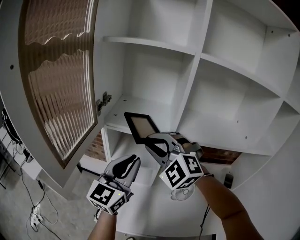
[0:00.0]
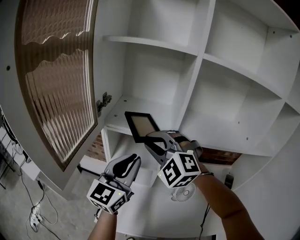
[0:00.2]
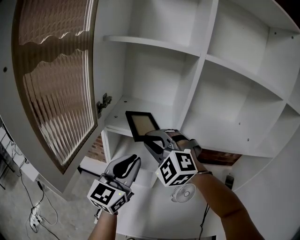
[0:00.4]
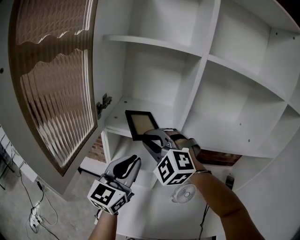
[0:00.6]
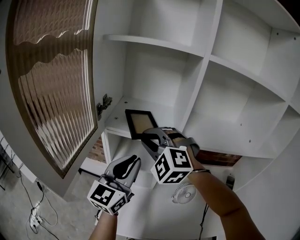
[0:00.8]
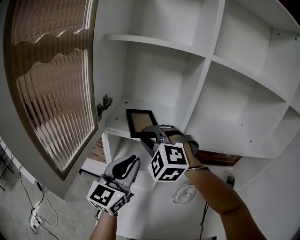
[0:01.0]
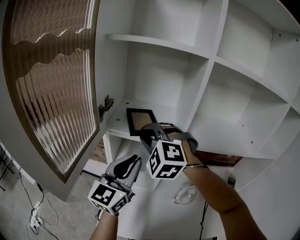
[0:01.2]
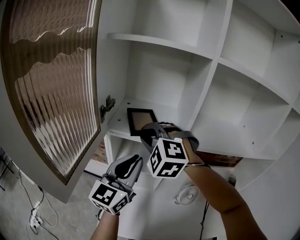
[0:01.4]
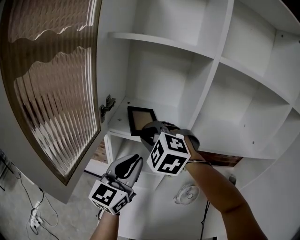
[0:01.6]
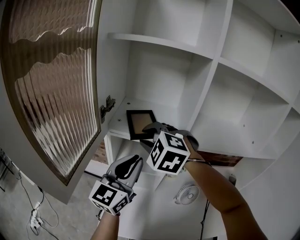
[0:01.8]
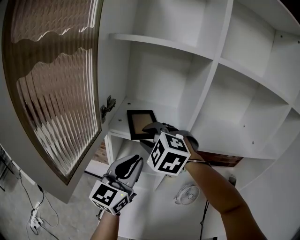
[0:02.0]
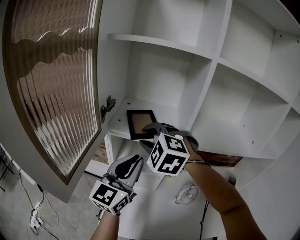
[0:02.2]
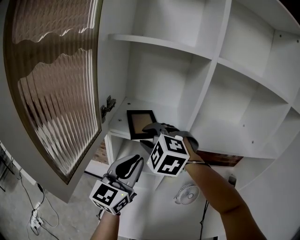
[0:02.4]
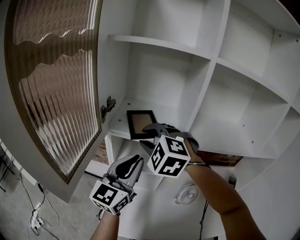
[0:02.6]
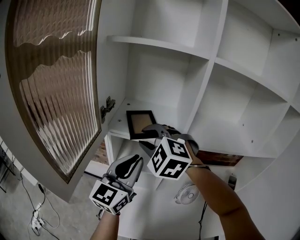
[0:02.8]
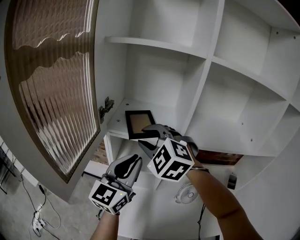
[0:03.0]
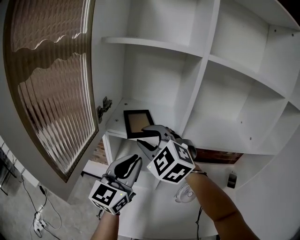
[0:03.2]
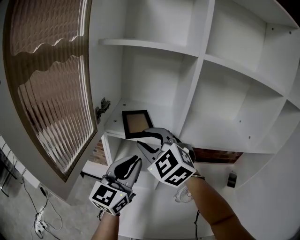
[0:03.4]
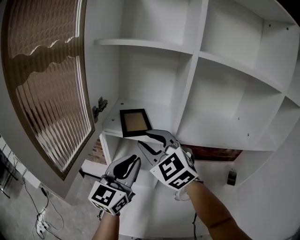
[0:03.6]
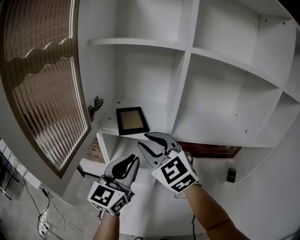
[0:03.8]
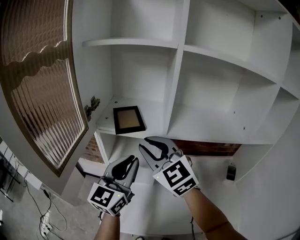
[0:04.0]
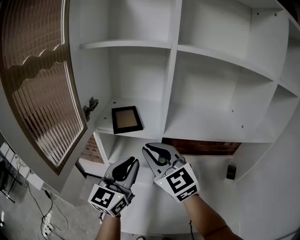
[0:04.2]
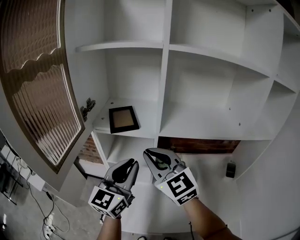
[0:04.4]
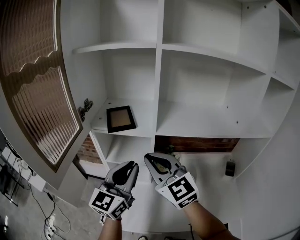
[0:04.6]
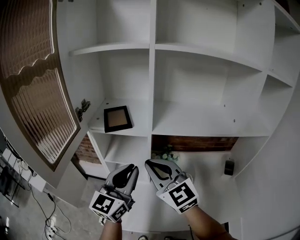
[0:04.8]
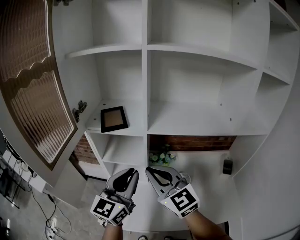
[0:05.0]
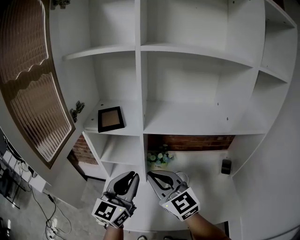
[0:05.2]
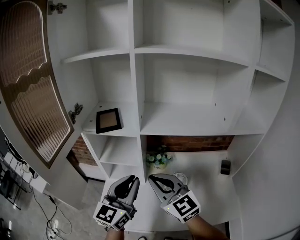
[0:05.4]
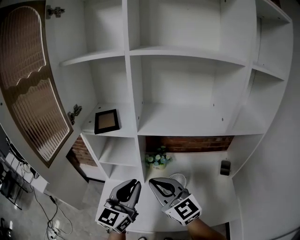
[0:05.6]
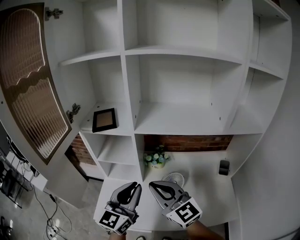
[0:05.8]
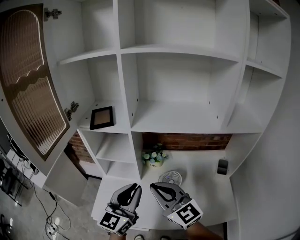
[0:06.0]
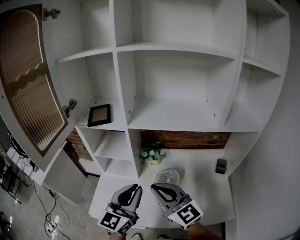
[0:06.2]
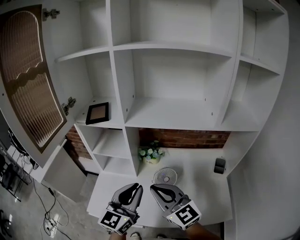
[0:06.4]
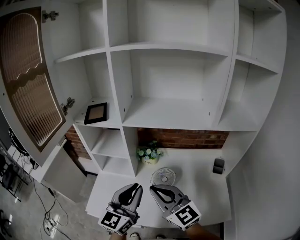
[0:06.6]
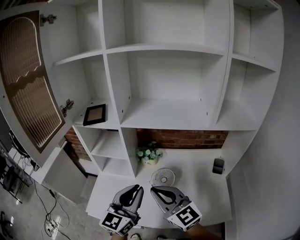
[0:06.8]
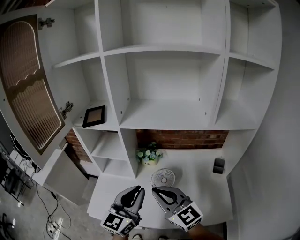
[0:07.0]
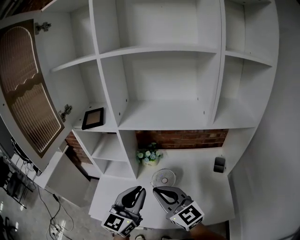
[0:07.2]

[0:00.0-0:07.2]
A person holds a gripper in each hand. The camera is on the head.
0:00.0 to 0:01.4: The right gripper heads forward, covering approximately 10 cm.
0:01.4 to 0:02.8: There are only small adjustments of the grippers.
0:02.8 to 0:04.4: The left gripper shifts some 5 cm to the right; the right gripper heads backward and to the right, covering some 15 cm, swivels approximately 50 degrees, and closes up.
0:04.4 to 0:05.8: The grippers both shift backward, to the right and downward by roughly 15 cm.
0:05.8 to 0:07.2: The grippers both shift to the right by about 10 cm.

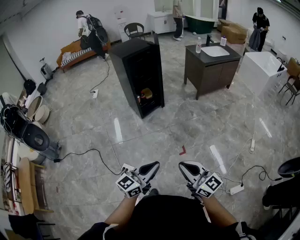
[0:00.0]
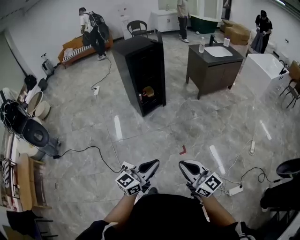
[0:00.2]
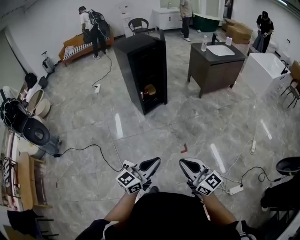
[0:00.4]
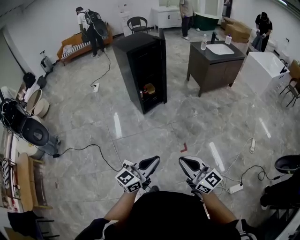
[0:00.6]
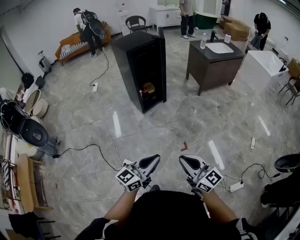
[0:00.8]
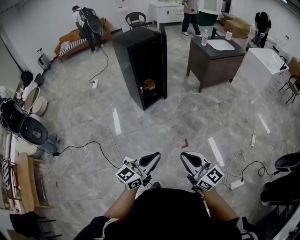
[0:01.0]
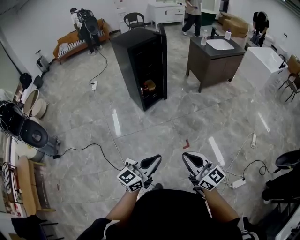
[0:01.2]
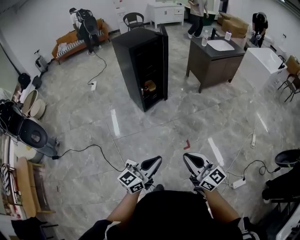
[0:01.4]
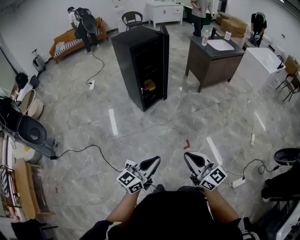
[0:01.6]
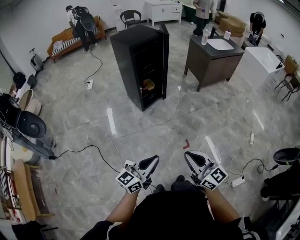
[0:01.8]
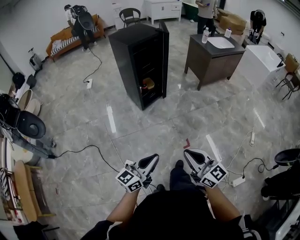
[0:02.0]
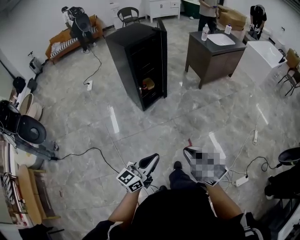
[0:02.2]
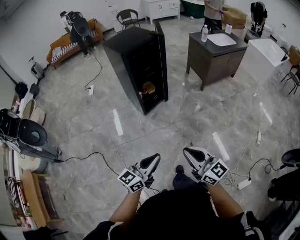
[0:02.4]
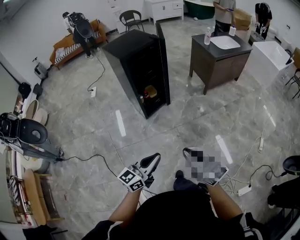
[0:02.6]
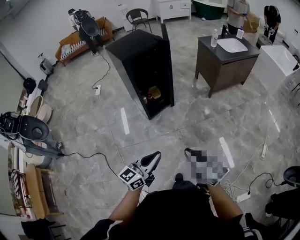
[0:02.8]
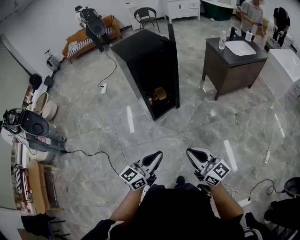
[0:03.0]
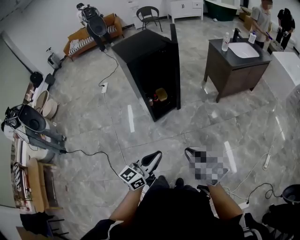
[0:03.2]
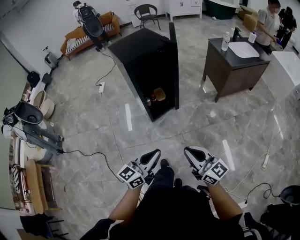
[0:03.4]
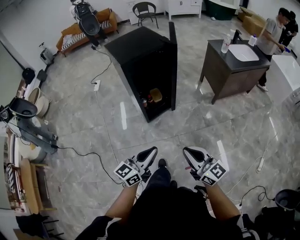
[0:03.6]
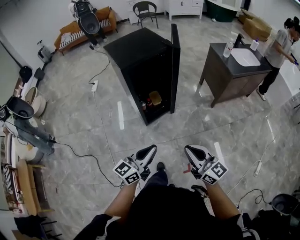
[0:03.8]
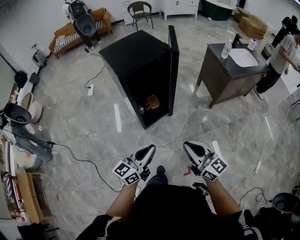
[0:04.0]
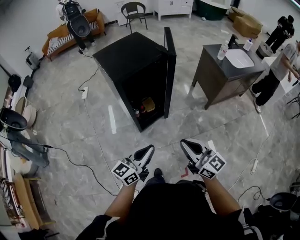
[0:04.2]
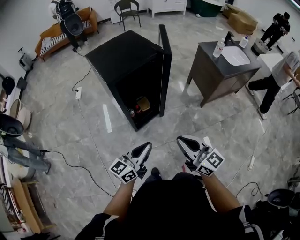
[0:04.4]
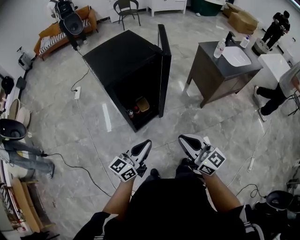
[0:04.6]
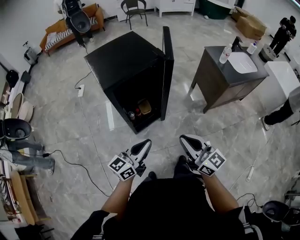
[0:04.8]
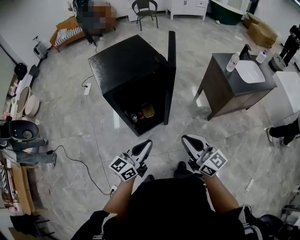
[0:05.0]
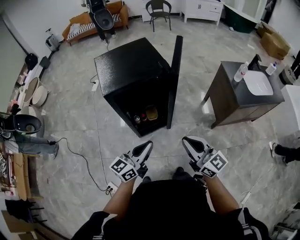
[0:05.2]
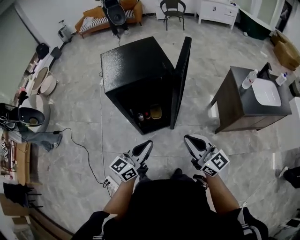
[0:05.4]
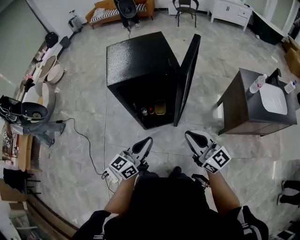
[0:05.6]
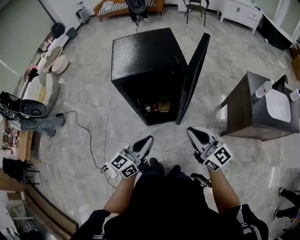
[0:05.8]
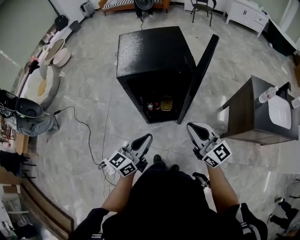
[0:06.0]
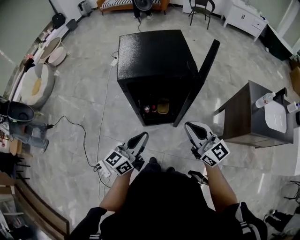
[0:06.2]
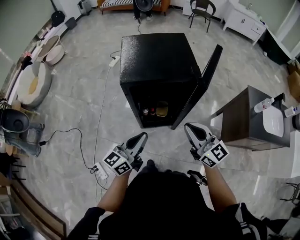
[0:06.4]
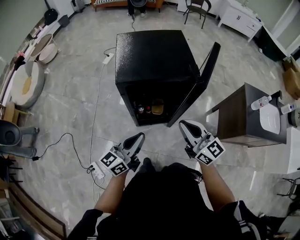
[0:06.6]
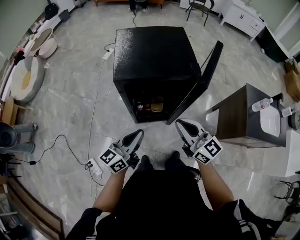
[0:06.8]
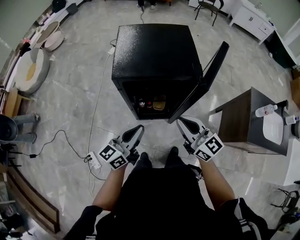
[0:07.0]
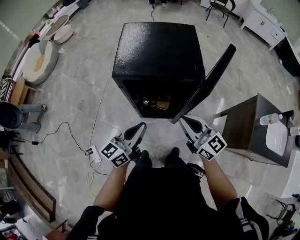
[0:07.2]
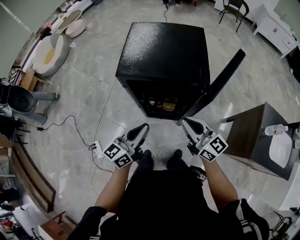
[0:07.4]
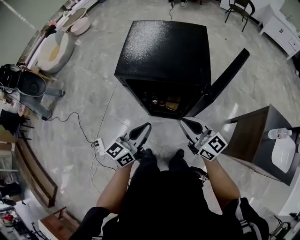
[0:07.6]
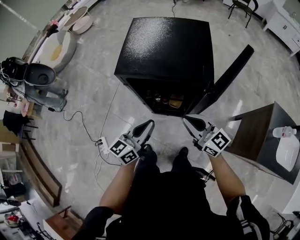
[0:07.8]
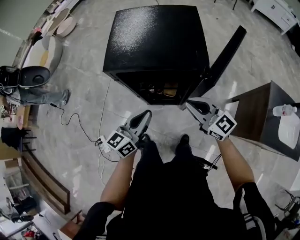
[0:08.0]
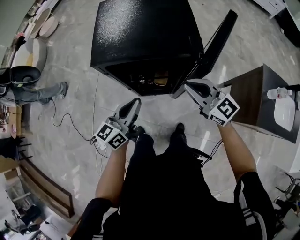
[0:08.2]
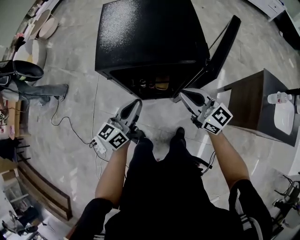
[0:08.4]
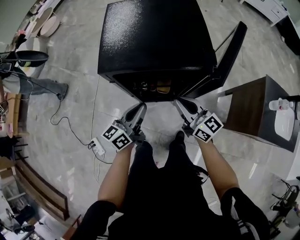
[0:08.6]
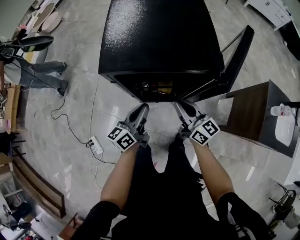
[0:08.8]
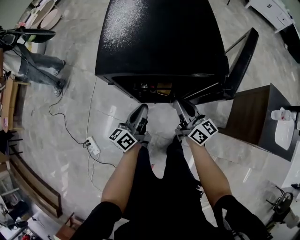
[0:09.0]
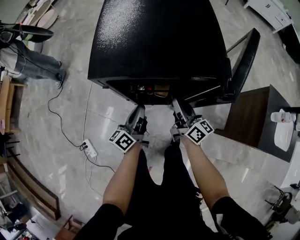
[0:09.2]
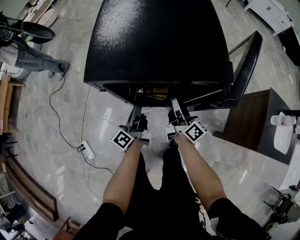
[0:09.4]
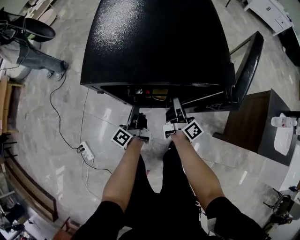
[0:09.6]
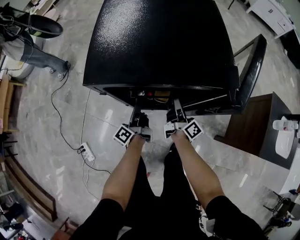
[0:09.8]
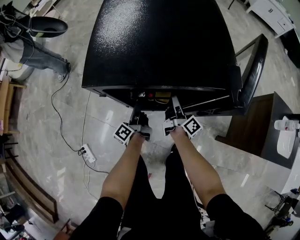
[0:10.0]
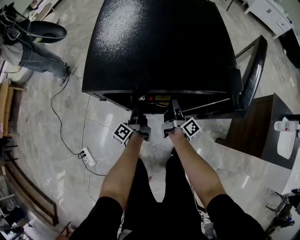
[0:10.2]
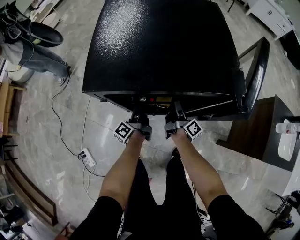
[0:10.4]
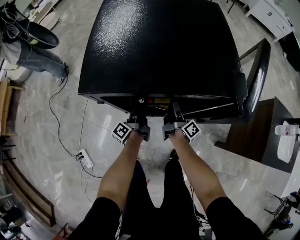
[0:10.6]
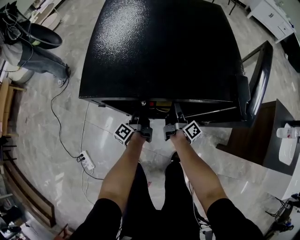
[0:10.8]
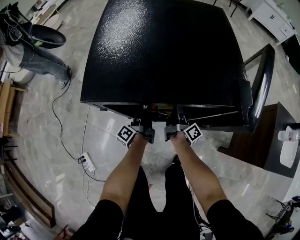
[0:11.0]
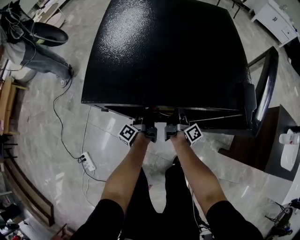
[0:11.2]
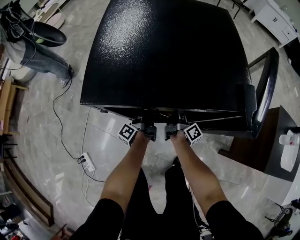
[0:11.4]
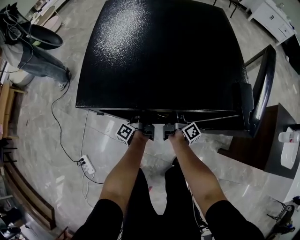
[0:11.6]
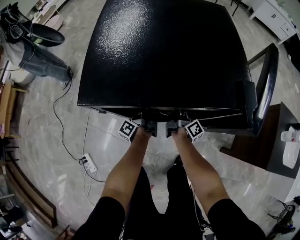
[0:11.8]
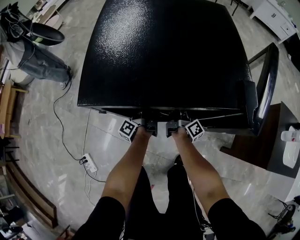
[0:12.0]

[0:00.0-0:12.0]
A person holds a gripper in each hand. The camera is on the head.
0:00.0 to 0:01.6: Both grippers move to the left and forward, approximately 15 cm.
0:01.6 to 0:03.0: The two grippers go approximately 25 cm forward.
0:03.0 to 0:04.4: The two grippers go about 30 cm forward.
0:04.4 to 0:06.0: The left gripper moves some 15 cm, and changes its angle by some 30 degrees; the right gripper changes place by approximately 25 cm, and changes its angle by approximately 30 degrees.
0:06.0 to 0:07.6: The right gripper shifts about 15 cm forward and downward, and changes its angle by some 20 degrees. The left gripper shifts about 10 cm forward.
0:07.6 to 0:09.0: Both grippers travel together downward and forward, about 15 cm. The right gripper rotates about 30 degrees, while the left gripper turns by roughly 30 degrees.
0:09.0 to 0:10.4: The two grippers go about 20 cm downward and forward. The right gripper twists some 50 degrees clockwise, seen from behind, and opens. Meanwhile the left gripper changes its angle by approximately 40 degrees, and opens its fingers.
0:10.4 to 0:12.0: The right gripper moves about 5 cm. Meanwhile the left gripper shifts about 5 cm forward.

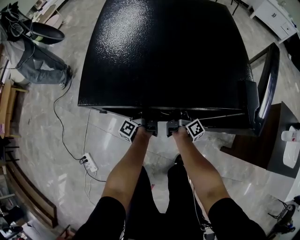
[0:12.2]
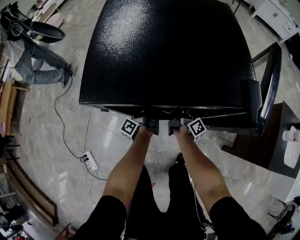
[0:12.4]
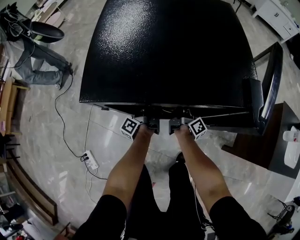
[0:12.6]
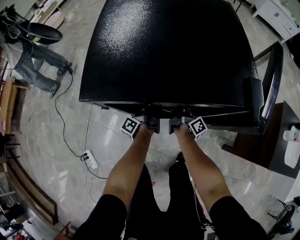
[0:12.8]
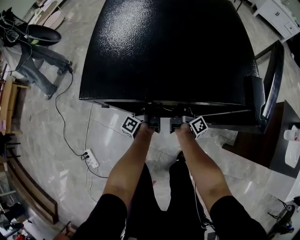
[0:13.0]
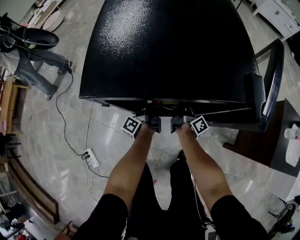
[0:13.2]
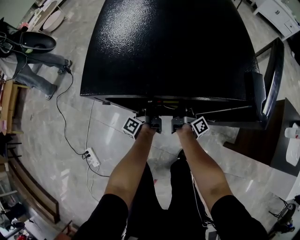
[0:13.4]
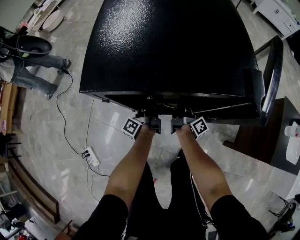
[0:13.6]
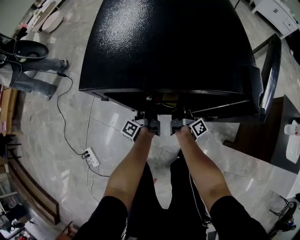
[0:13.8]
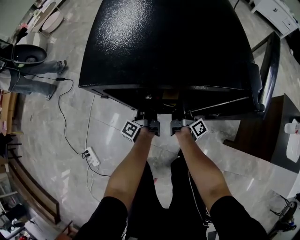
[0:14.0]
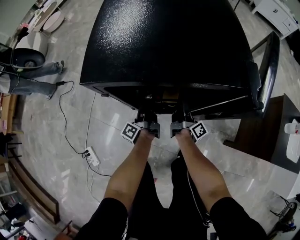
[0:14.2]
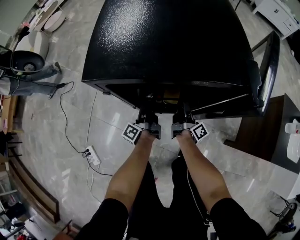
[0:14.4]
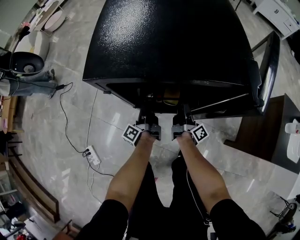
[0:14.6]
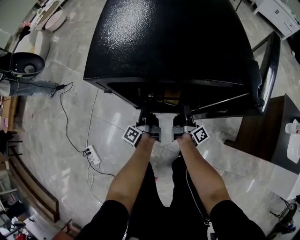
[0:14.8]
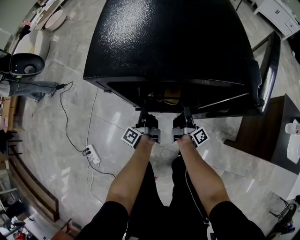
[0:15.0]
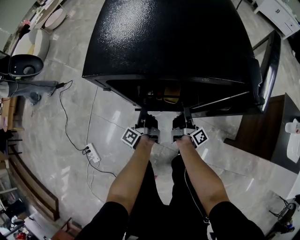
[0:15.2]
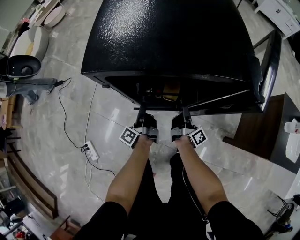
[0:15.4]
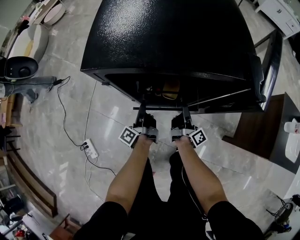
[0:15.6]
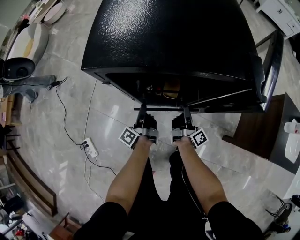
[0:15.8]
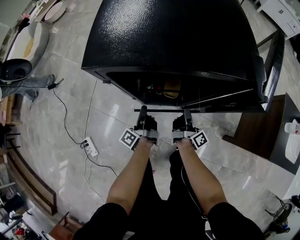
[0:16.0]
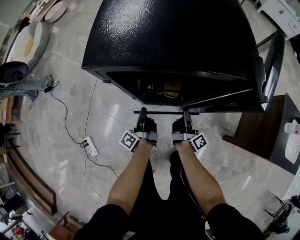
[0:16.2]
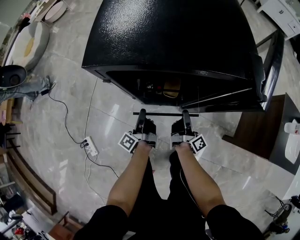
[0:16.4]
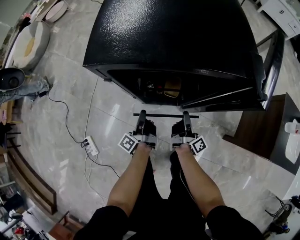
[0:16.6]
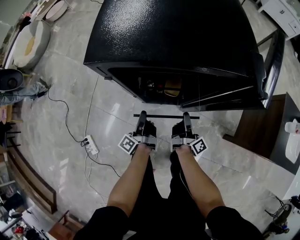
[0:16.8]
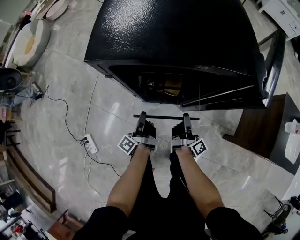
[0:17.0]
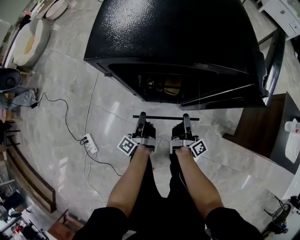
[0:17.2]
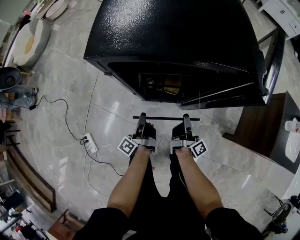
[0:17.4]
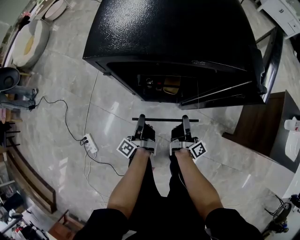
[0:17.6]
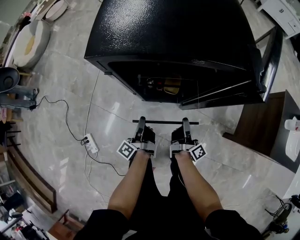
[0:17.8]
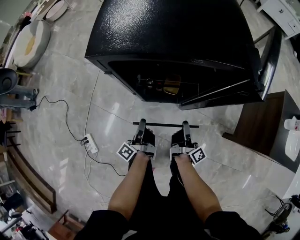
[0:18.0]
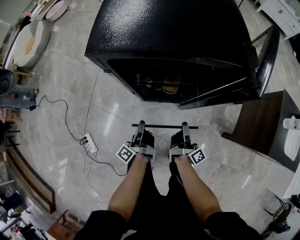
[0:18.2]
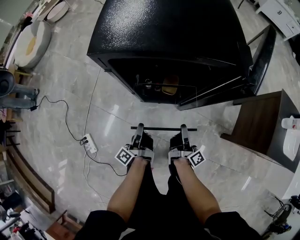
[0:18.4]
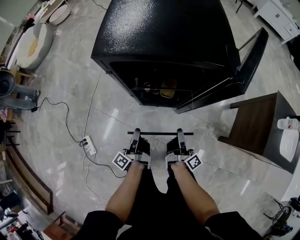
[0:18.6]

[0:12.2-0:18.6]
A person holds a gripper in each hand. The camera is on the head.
0:12.2 to 0:13.8: The grippers make only small movements.
0:13.8 to 0:15.4: The two grippers go about 5 cm backward.
0:15.4 to 0:17.0: The two grippers go approximately 5 cm backward.
0:17.0 to 0:18.6: Both grippers move backward and upward, approximately 10 cm.
